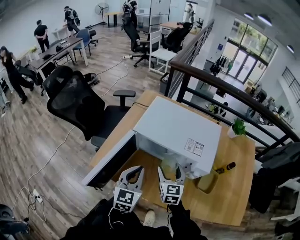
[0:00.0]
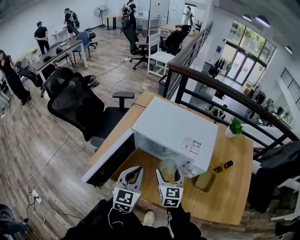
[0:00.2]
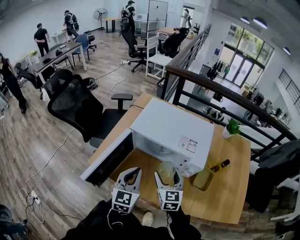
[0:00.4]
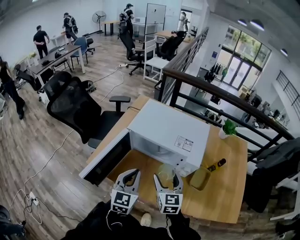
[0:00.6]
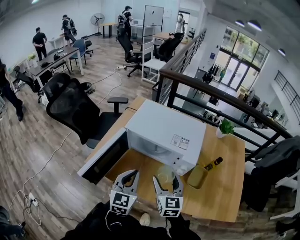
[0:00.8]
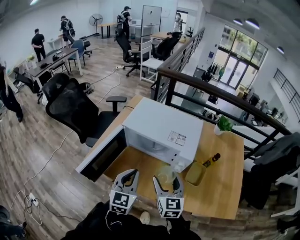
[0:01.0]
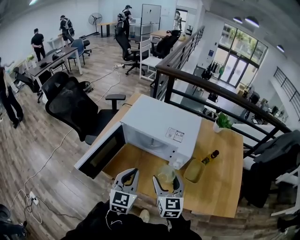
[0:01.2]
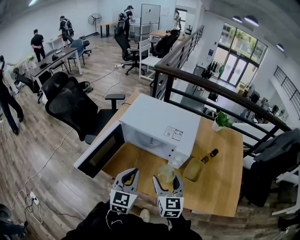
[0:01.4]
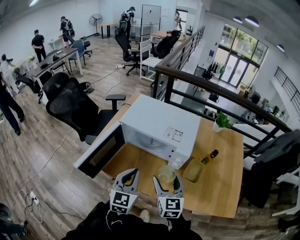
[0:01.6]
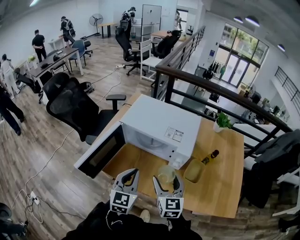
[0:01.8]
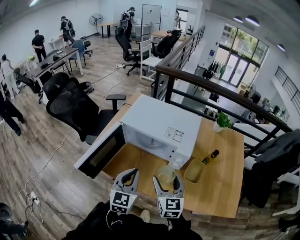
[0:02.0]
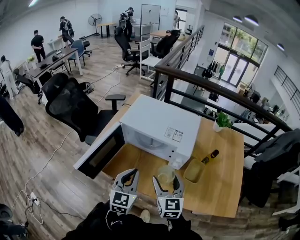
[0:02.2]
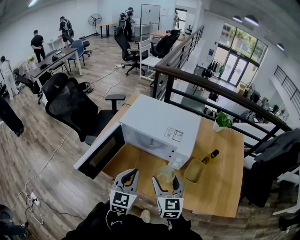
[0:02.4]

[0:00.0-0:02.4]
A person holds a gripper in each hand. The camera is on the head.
0:00.0 to 0:01.2: The right gripper travels backward, upward and to the right by approximately 20 cm, while the left gripper heads backward and to the right, covering approximately 10 cm.
0:01.2 to 0:02.4: Neither gripper changes place.

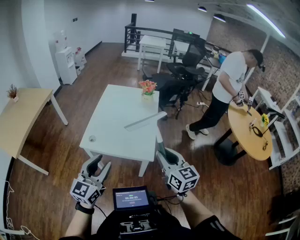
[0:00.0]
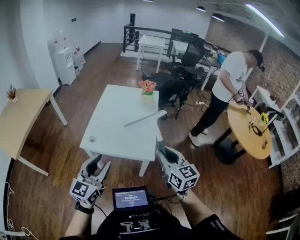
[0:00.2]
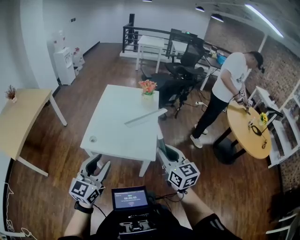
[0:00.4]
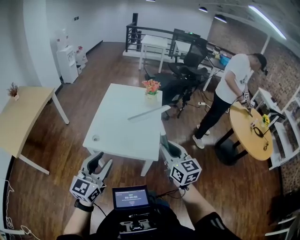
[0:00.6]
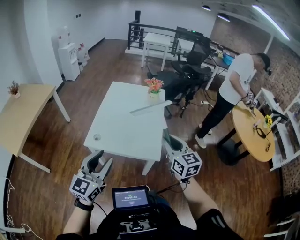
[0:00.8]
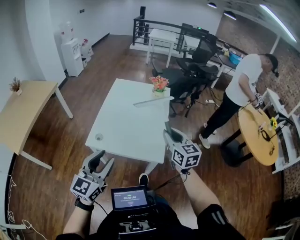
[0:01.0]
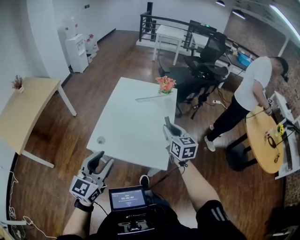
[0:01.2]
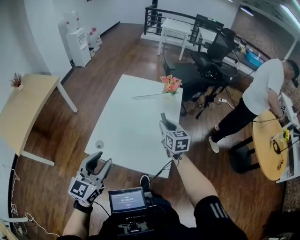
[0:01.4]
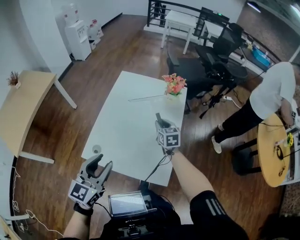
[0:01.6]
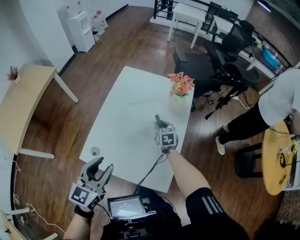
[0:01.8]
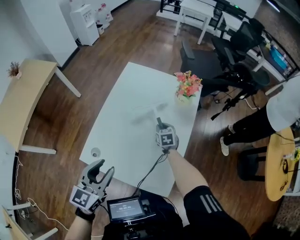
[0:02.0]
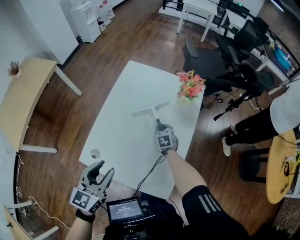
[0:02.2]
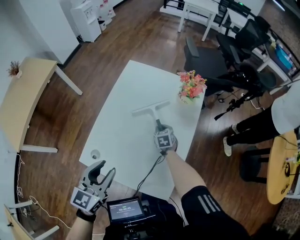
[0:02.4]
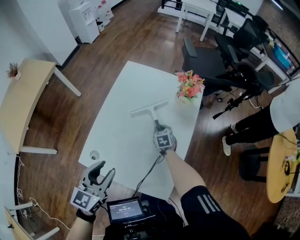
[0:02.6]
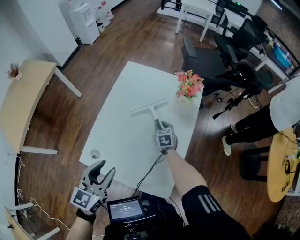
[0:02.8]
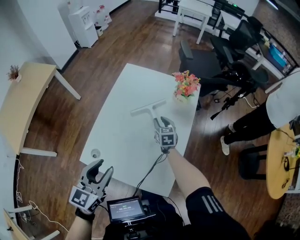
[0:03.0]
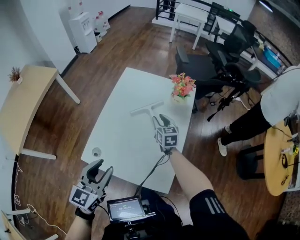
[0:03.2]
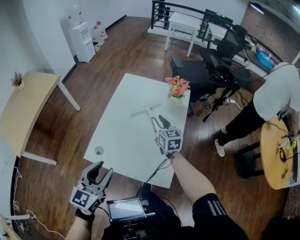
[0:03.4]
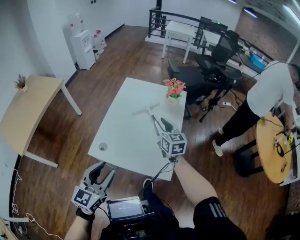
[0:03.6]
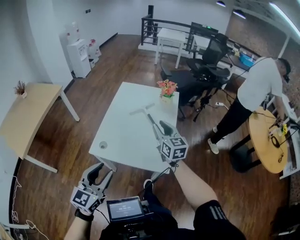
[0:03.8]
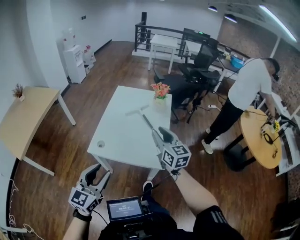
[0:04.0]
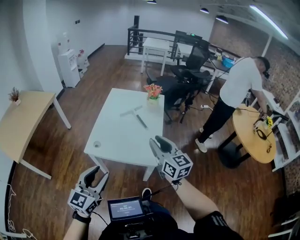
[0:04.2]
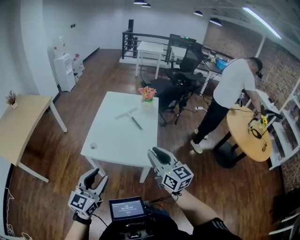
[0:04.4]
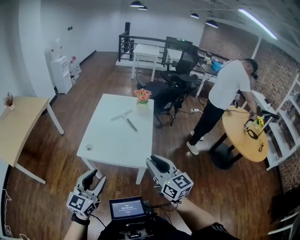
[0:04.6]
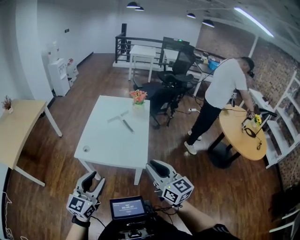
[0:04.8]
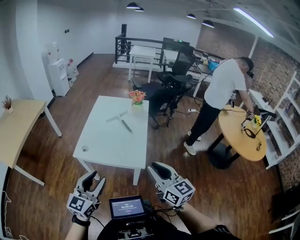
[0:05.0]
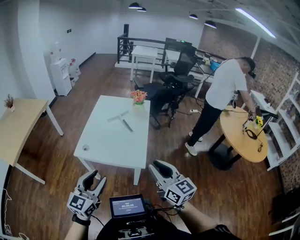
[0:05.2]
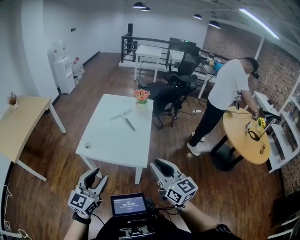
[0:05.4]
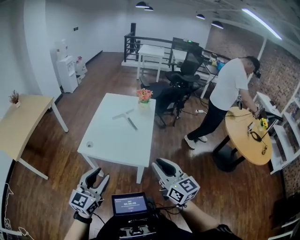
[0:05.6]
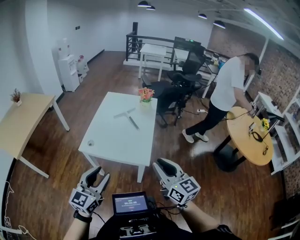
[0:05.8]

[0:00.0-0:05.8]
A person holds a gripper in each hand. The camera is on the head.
0:00.0 to 0:01.4: The left gripper shifts approximately 15 cm forward. Meanwhile the right gripper moves forward, some 35 cm.
0:01.4 to 0:02.8: The right gripper travels downward and forward by some 30 cm, and changes its angle by approximately 20 degrees, while the left gripper moves forward and downward, roughly 15 cm.
0:02.8 to 0:04.4: The right gripper heads backward and upward, covering approximately 70 cm, and angles its fingers upward, by approximately 50 degrees. The left gripper moves backward, roughly 35 cm, and turns by some 20 degrees.
0:04.4 to 0:05.8: The right gripper travels backward and to the right by about 10 cm. Meanwhile the left gripper moves to the right, roughly 10 cm.

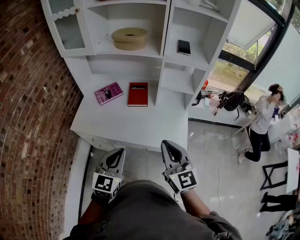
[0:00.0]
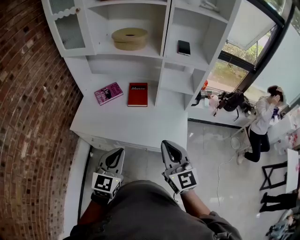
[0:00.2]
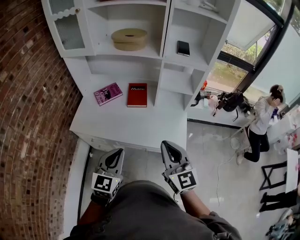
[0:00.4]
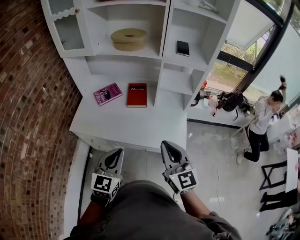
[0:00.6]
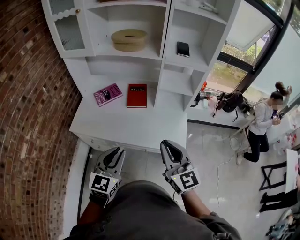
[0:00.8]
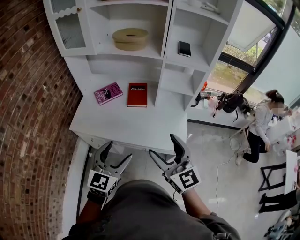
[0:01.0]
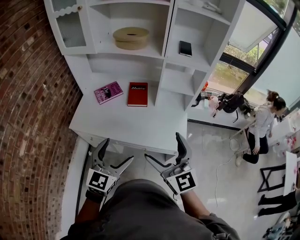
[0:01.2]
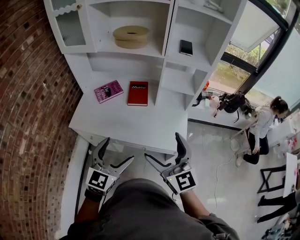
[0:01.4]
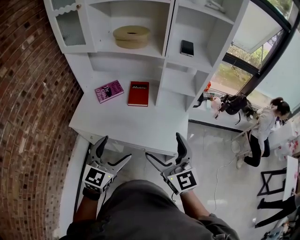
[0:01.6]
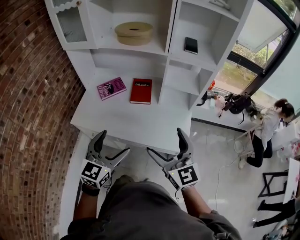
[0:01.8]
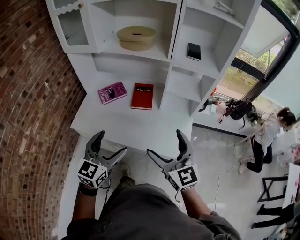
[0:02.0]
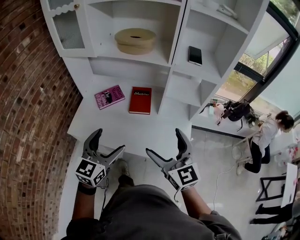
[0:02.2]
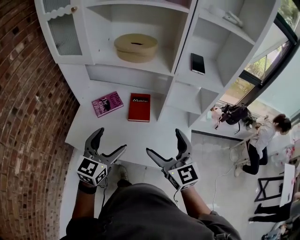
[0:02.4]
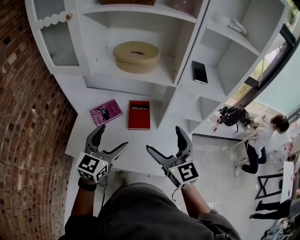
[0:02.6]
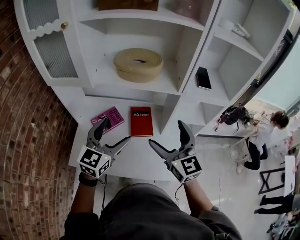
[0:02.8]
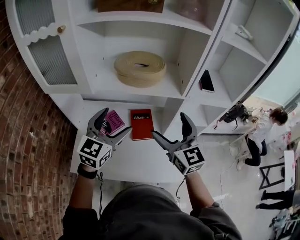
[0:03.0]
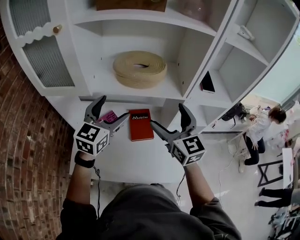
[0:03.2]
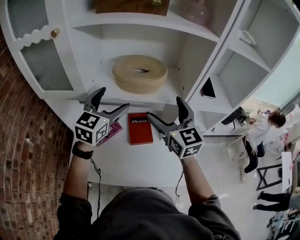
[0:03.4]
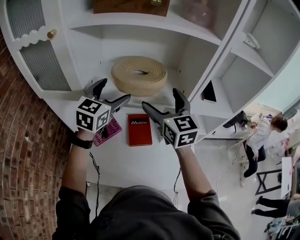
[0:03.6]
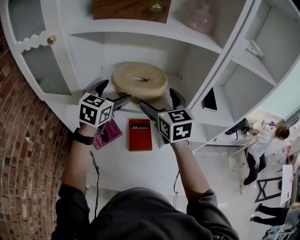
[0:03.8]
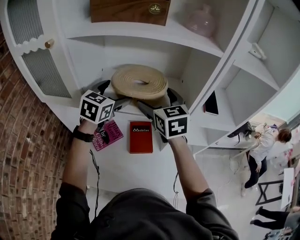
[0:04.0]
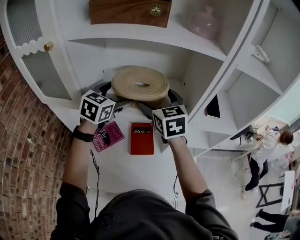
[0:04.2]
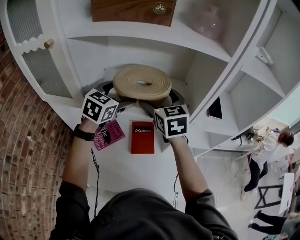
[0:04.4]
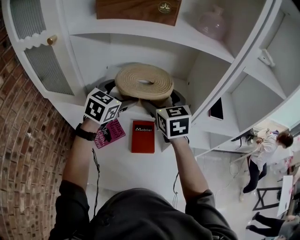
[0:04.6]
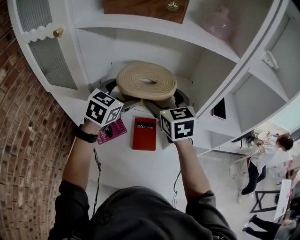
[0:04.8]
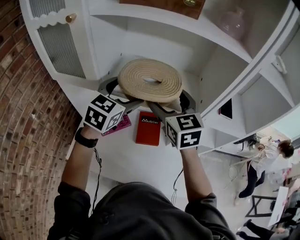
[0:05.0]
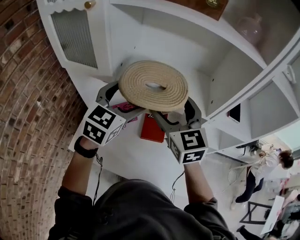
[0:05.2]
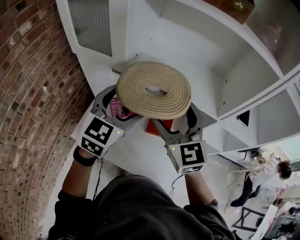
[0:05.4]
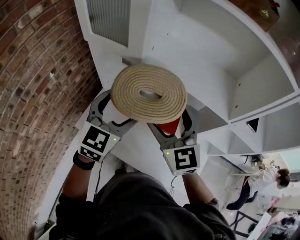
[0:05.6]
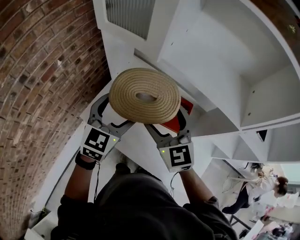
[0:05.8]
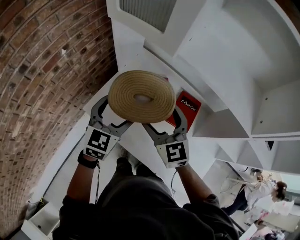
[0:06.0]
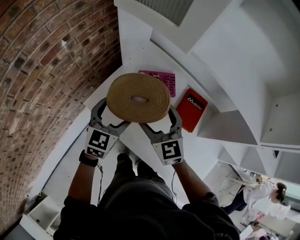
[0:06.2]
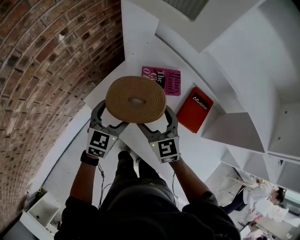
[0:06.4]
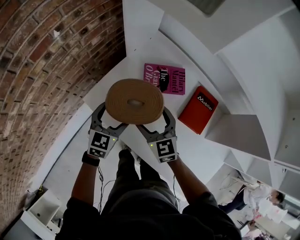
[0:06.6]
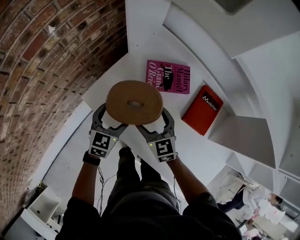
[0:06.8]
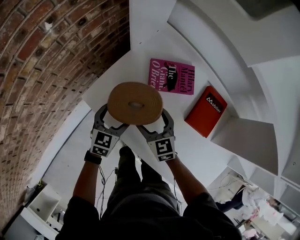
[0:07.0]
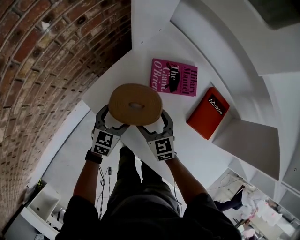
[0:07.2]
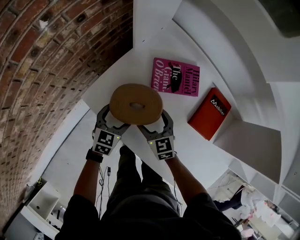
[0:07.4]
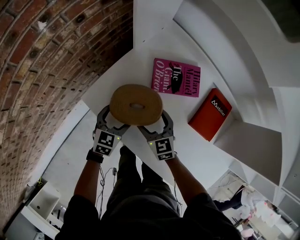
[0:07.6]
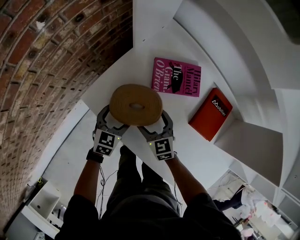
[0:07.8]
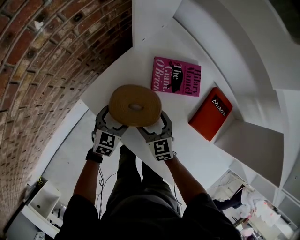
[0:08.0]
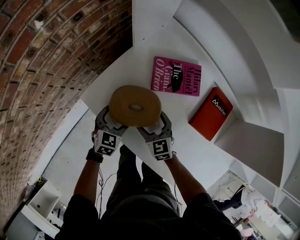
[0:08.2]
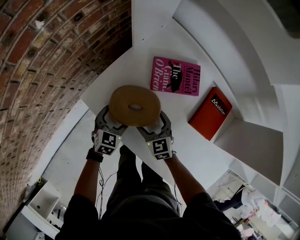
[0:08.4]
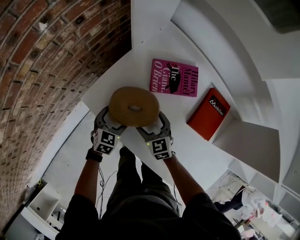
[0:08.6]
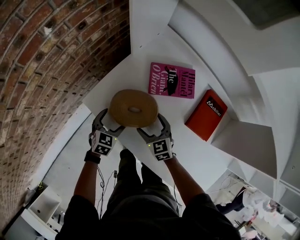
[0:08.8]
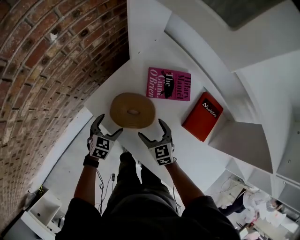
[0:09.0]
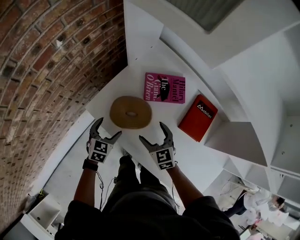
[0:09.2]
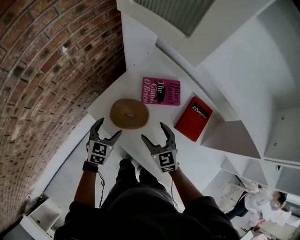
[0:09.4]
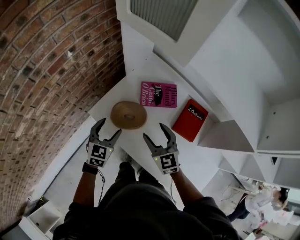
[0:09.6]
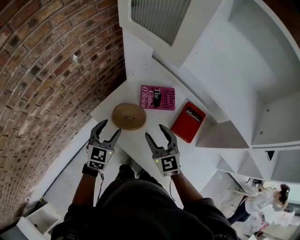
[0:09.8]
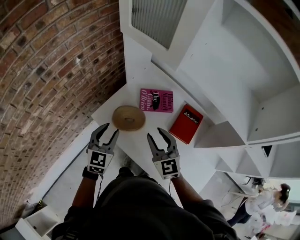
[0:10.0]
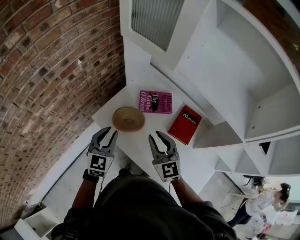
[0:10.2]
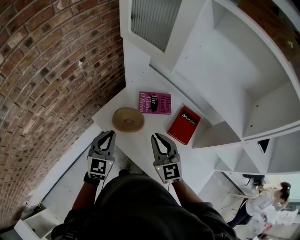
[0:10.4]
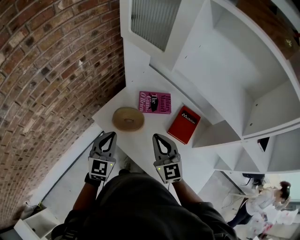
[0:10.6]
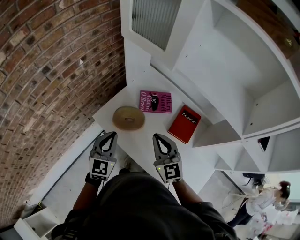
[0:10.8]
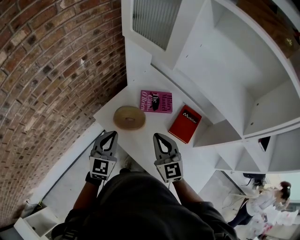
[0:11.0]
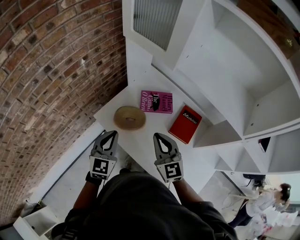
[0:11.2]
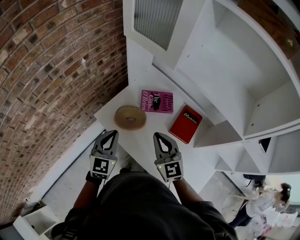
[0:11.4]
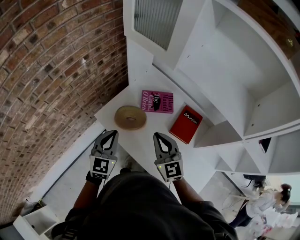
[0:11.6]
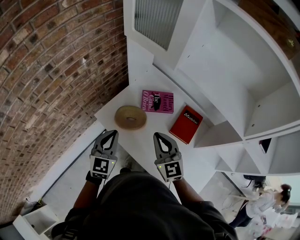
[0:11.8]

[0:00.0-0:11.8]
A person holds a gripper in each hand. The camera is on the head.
0:00.0 to 0:01.4: The right gripper opens its fingers. The left gripper opens.
0:01.4 to 0:03.0: The grippers both shift forward by about 35 cm.
0:03.0 to 0:04.4: Both grippers travel together forward, approximately 20 cm.
0:04.4 to 0:06.0: The right gripper ends up some 35 cm from where it was, and rotates some 40 degrees. The left gripper moves about 35 cm, and rotates about 30 degrees.
0:06.0 to 0:07.4: Both grippers move downward, about 30 cm. The right gripper rotates approximately 20 degrees. Meanwhile the left gripper rotates about 20 degrees.
0:07.4 to 0:08.8: The grippers make only small movements.
0:08.8 to 0:10.4: Both grippers move upward, some 35 cm. The left gripper rotates about 30 degrees, and closes; the right gripper turns by approximately 30 degrees, and closes.
0:10.4 to 0:11.8: The grippers make only small movements.

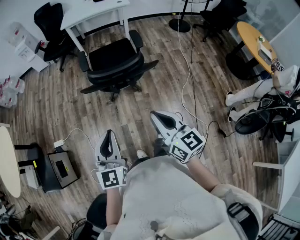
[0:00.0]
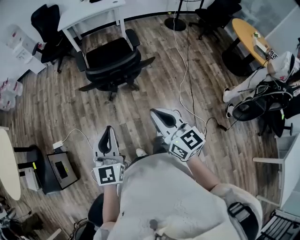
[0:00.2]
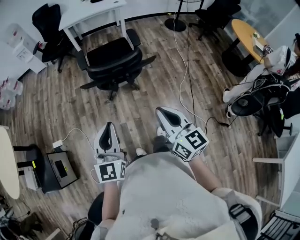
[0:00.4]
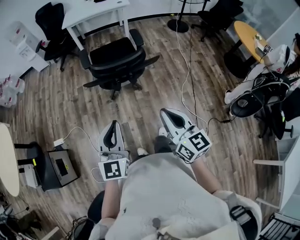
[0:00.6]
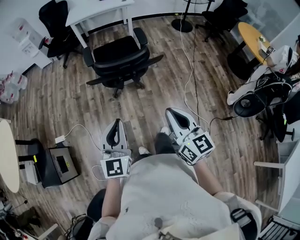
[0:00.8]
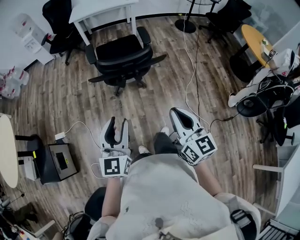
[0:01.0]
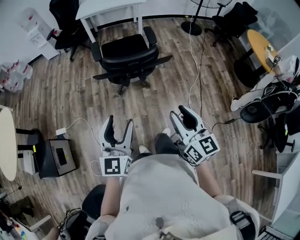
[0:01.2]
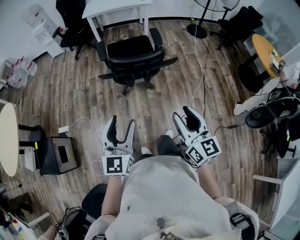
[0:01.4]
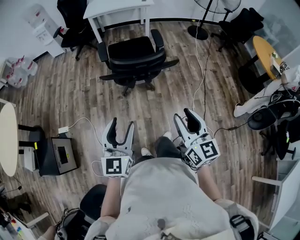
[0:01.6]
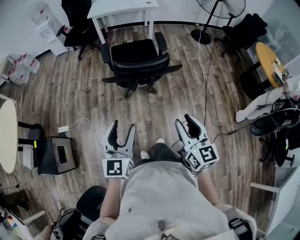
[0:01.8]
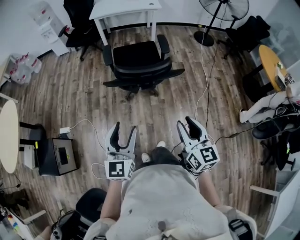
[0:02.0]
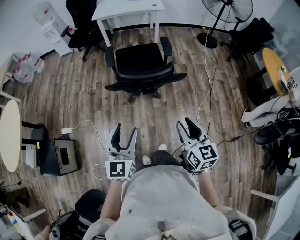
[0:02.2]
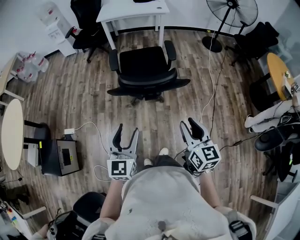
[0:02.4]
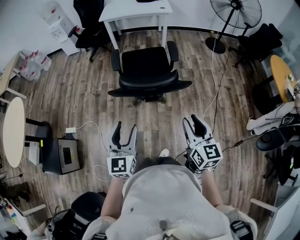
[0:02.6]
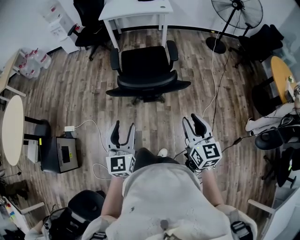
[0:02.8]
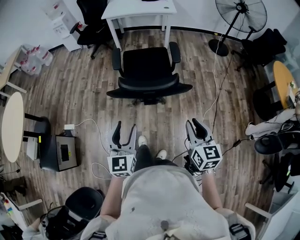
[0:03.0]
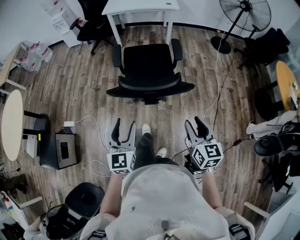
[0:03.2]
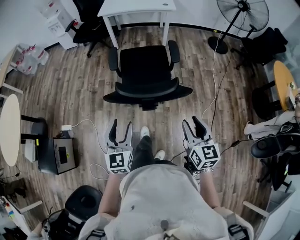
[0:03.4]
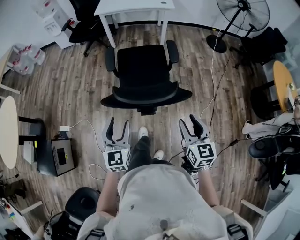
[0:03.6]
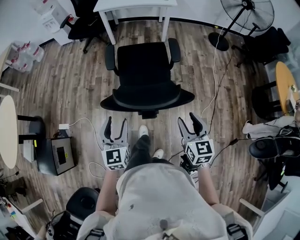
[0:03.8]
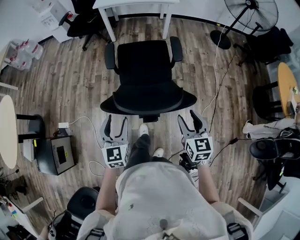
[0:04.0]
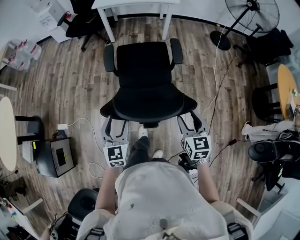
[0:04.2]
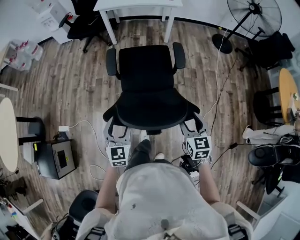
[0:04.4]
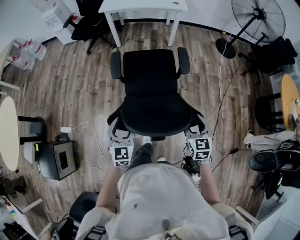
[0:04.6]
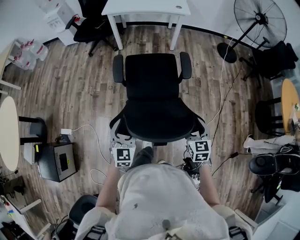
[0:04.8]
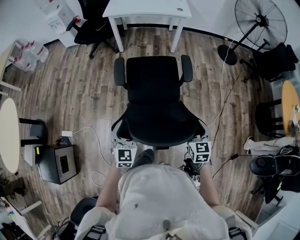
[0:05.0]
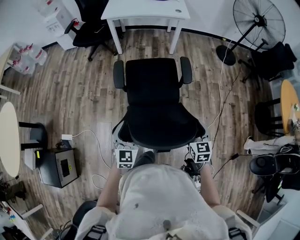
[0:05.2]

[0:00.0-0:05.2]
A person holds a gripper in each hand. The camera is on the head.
0:00.0 to 0:01.8: The right gripper opens up, while the left gripper goes roughly 5 cm to the left, and opens its fingers.
0:01.8 to 0:03.4: Both grippers move forward, approximately 25 cm.
0:03.4 to 0:05.2: Both grippers travel together forward, roughly 35 cm. The right gripper opens.
